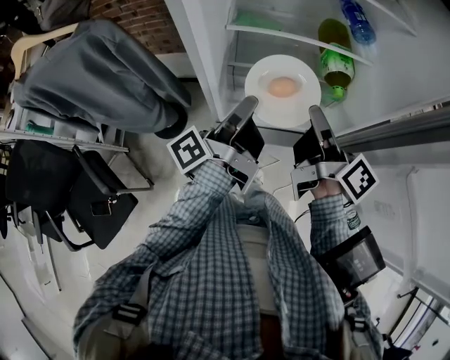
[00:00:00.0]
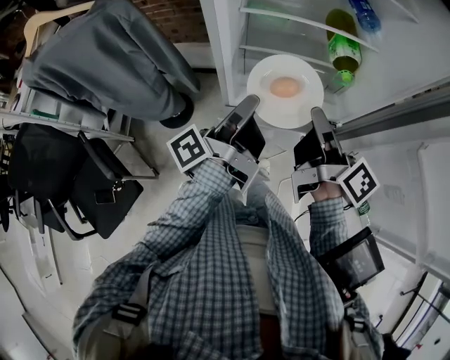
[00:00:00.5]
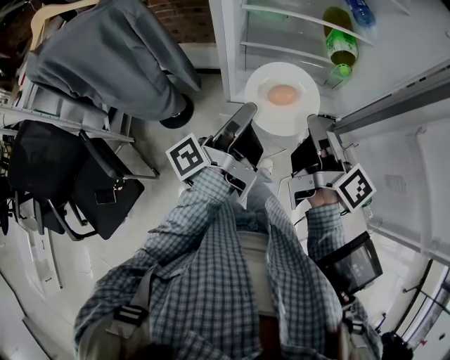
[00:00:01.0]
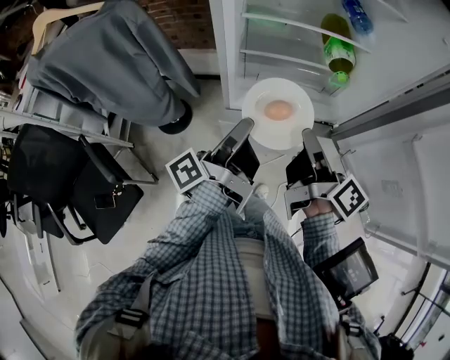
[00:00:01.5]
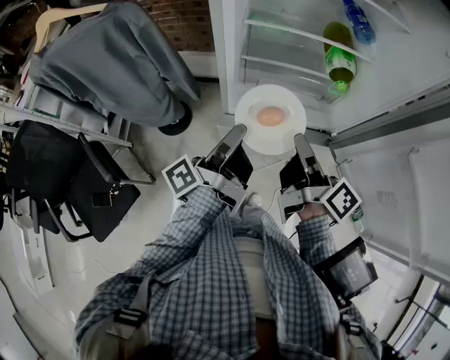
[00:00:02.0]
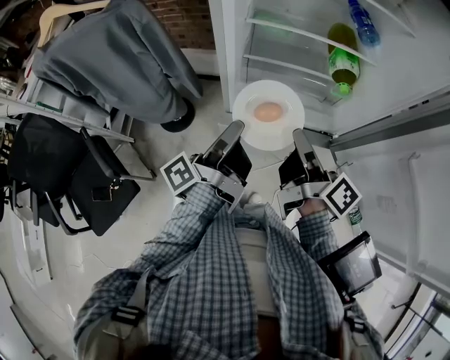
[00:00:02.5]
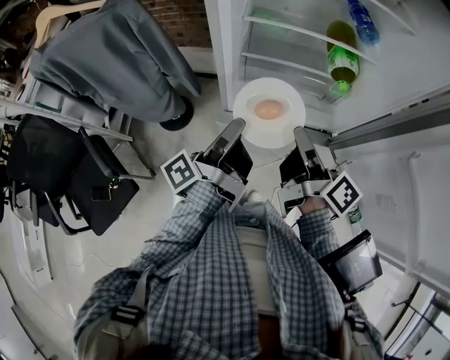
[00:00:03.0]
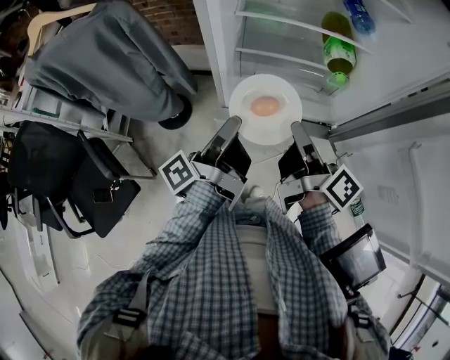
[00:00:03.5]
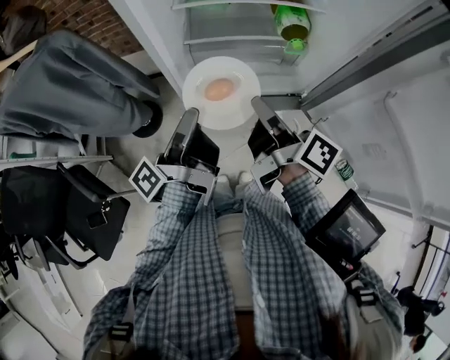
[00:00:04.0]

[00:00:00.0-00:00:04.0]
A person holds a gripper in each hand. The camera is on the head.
00:00:00.0 to 00:00:02.0: Both grippers move backward, approximately 10 cm.
00:00:02.0 to 00:00:04.0: The grippers stay close to where they were, moving slightly.

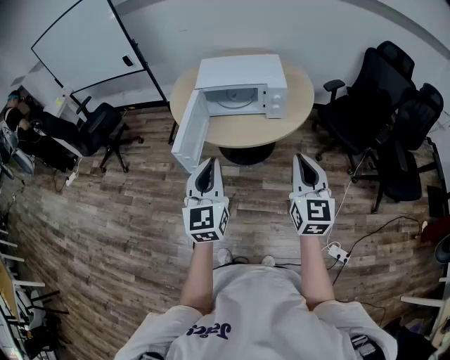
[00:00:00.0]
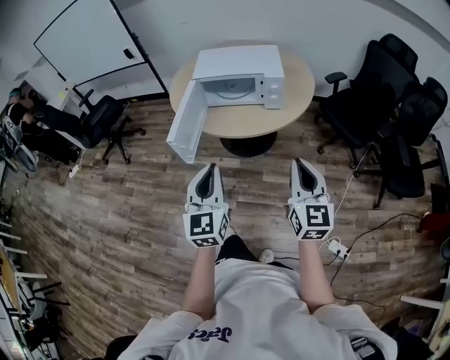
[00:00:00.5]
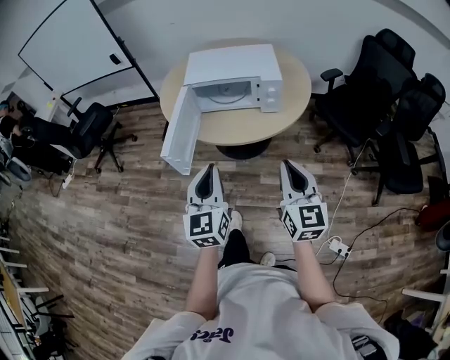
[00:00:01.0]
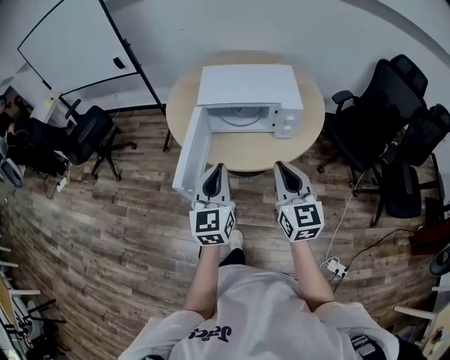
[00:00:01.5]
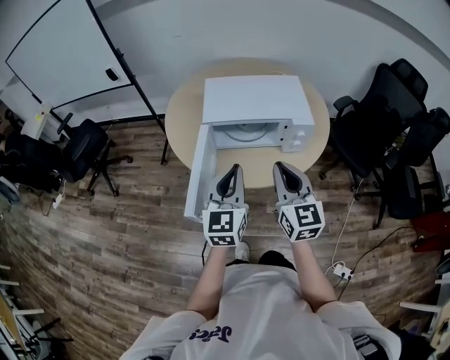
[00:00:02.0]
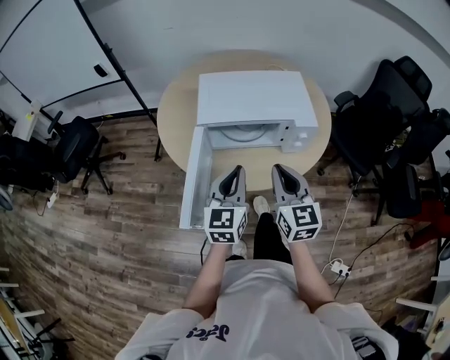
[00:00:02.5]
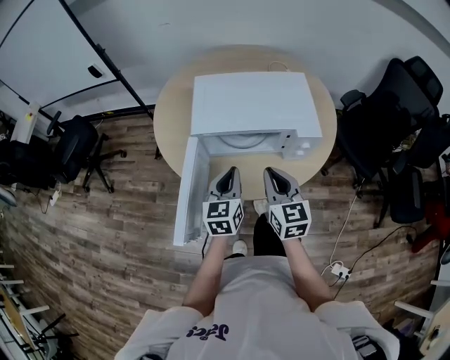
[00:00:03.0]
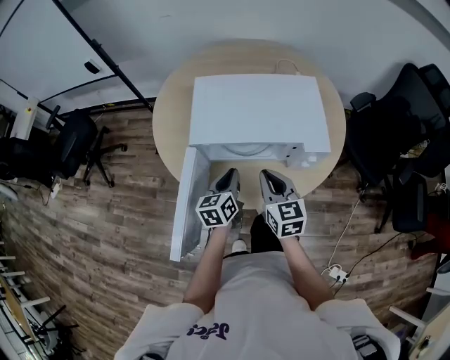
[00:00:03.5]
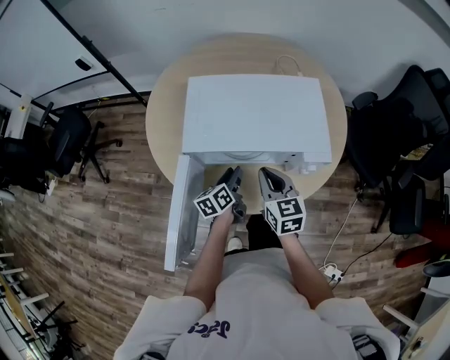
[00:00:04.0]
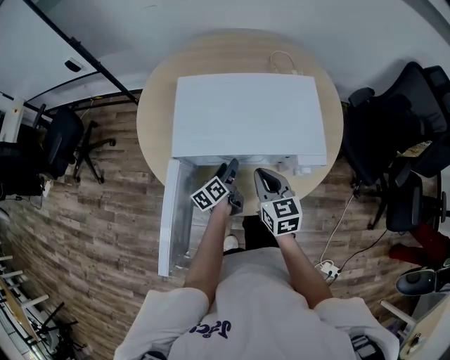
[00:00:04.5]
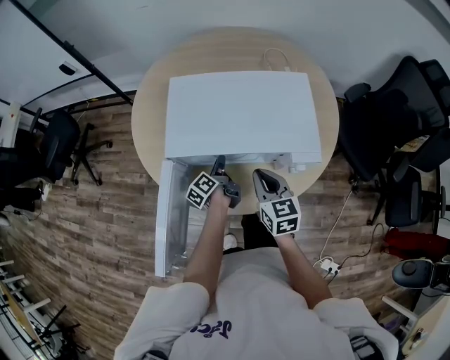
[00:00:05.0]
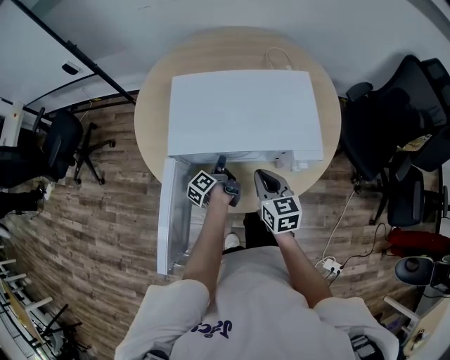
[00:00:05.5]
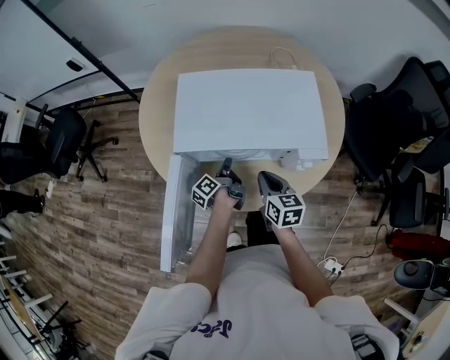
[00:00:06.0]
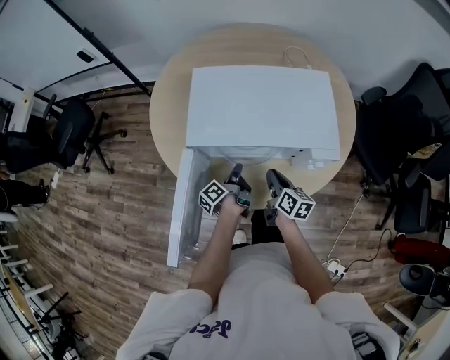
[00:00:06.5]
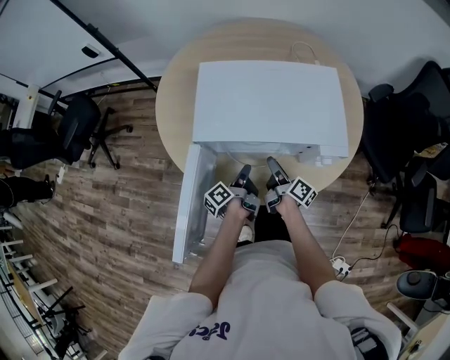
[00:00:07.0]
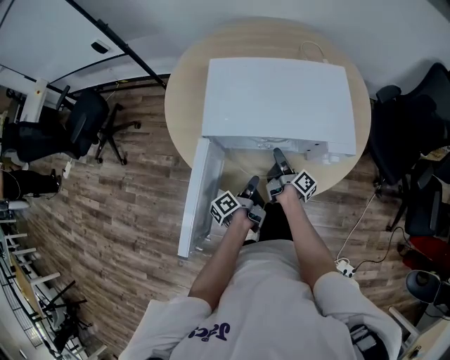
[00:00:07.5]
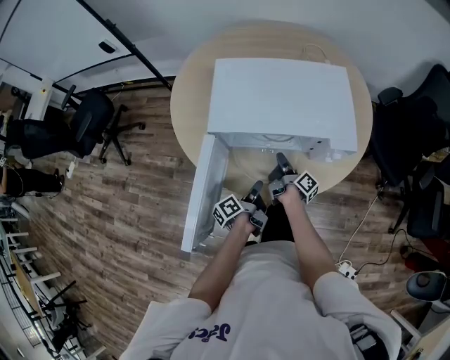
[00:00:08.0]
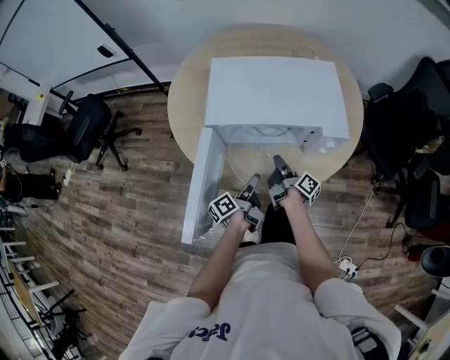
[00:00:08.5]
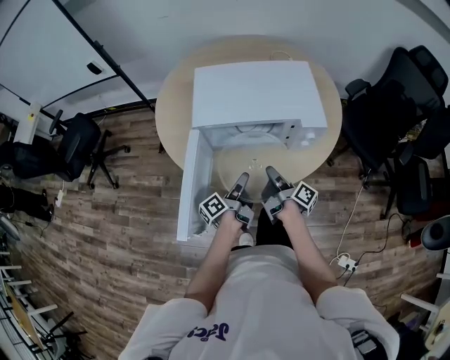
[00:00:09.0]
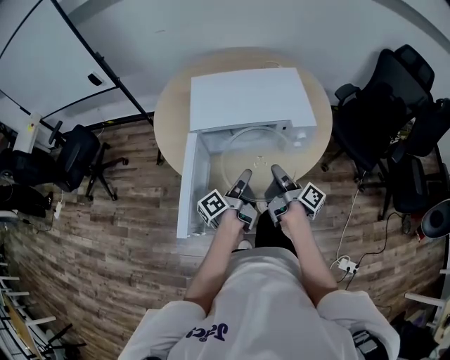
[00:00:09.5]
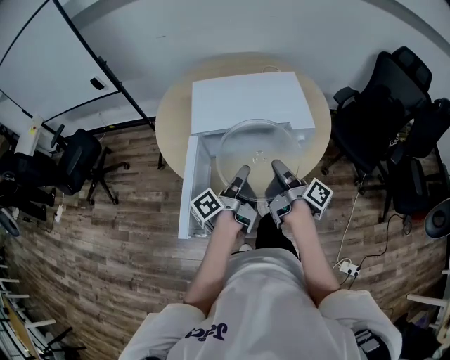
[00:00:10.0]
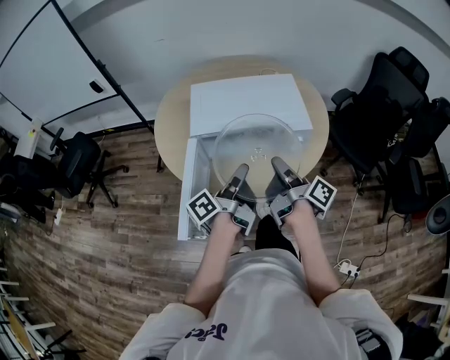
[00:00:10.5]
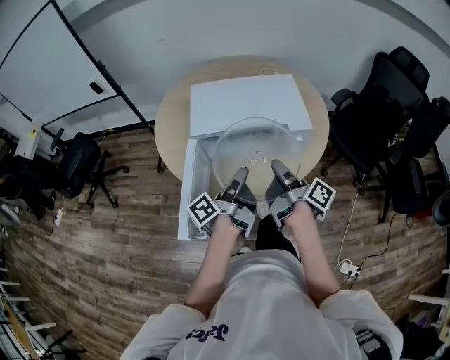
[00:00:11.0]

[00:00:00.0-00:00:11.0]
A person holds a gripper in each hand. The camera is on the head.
00:00:00.0 to 00:00:02.0: The right gripper moves forward and to the left, roughly 25 cm; the left gripper travels forward by about 25 cm.
00:00:02.0 to 00:00:03.5: The right gripper is displaced forward and downward by about 20 cm; the left gripper is displaced downward and forward by approximately 30 cm, and rotates roughly 40 degrees.
00:00:03.5 to 00:00:05.5: The right gripper moves downward, approximately 5 cm. Meanwhile the left gripper is displaced downward and forward by about 15 cm, twists about 50 degrees counterclockwise, seen from behind, and opens and closes again.
00:00:05.5 to 00:00:07.5: The right gripper is displaced downward by some 15 cm, rolls clockwise, seen from behind, by approximately 70 degrees, and opens its fingers. The left gripper shifts some 10 cm backward.
00:00:07.5 to 00:00:09.0: The left gripper shifts roughly 5 cm upward, and opens up, while the right gripper heads backward and upward, covering some 15 cm, and closes up.
00:00:09.0 to 00:00:11.0: The two grippers go some 20 cm upward. The left gripper closes up.

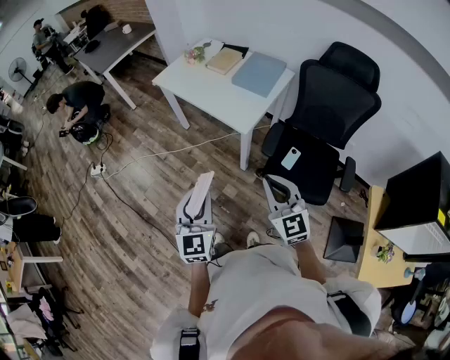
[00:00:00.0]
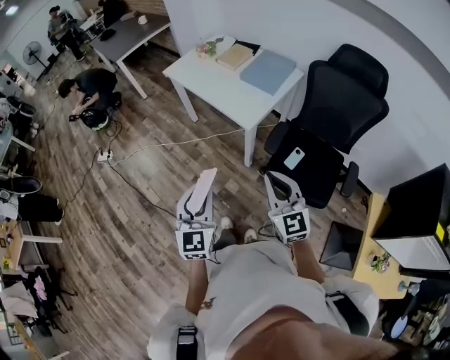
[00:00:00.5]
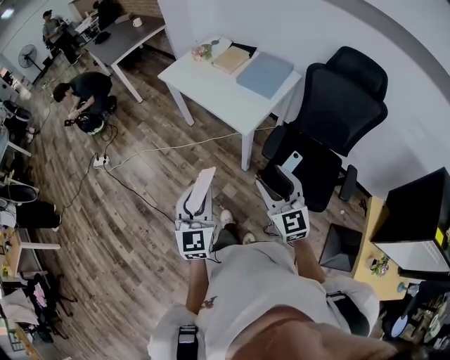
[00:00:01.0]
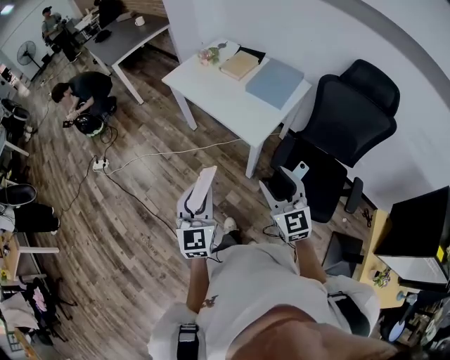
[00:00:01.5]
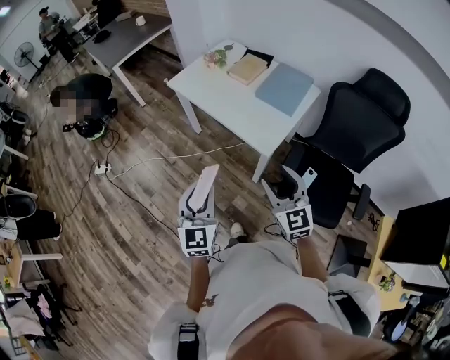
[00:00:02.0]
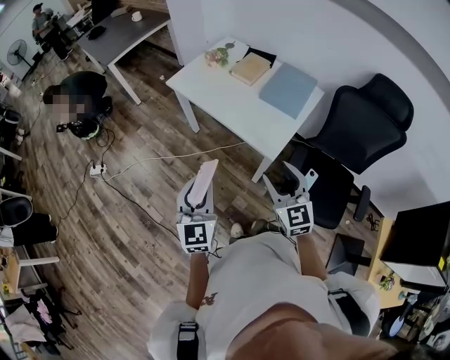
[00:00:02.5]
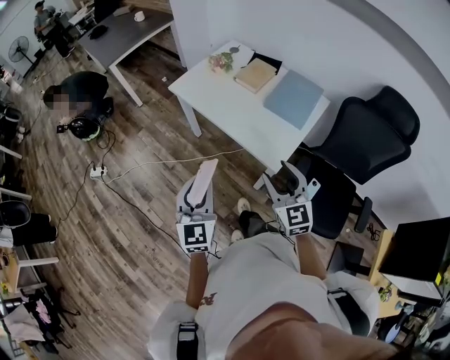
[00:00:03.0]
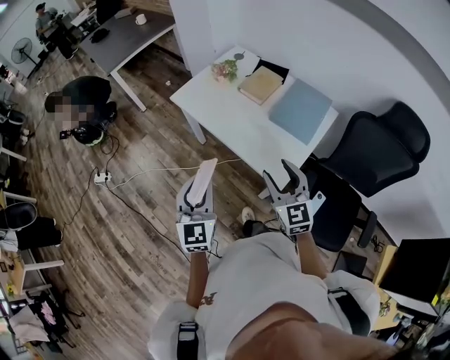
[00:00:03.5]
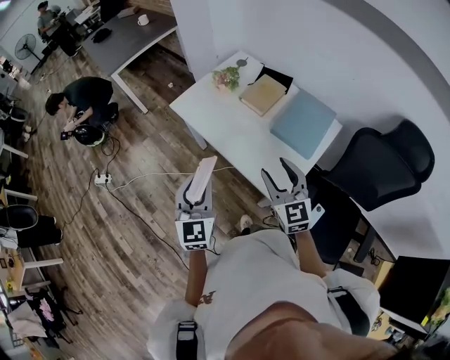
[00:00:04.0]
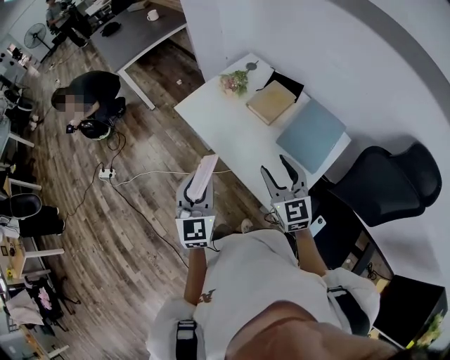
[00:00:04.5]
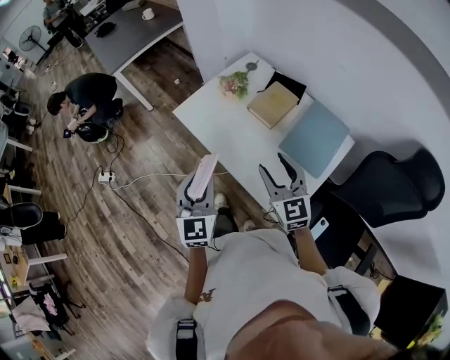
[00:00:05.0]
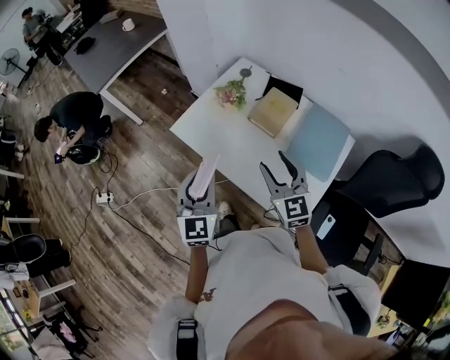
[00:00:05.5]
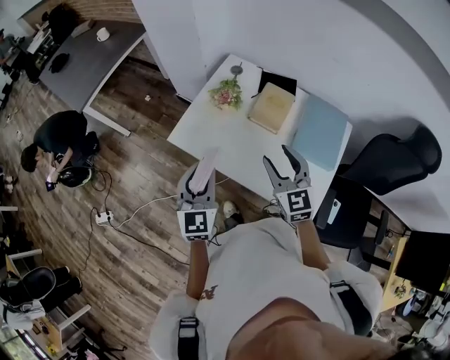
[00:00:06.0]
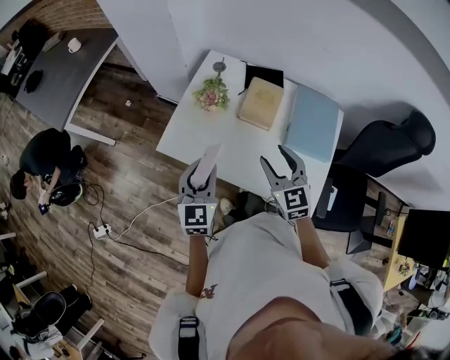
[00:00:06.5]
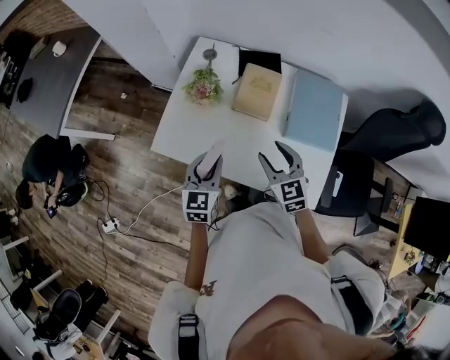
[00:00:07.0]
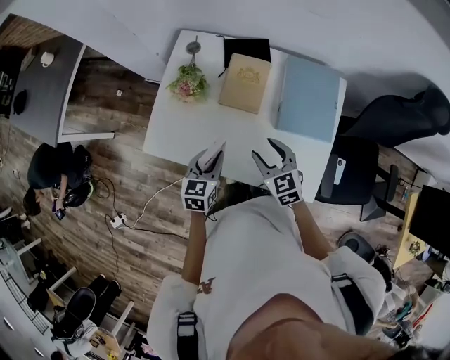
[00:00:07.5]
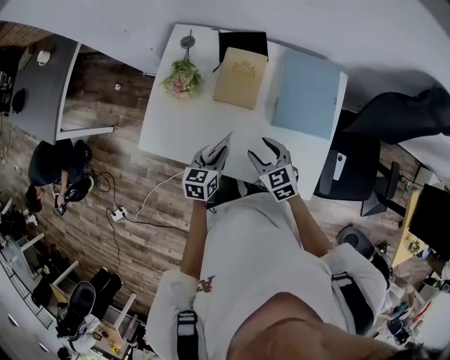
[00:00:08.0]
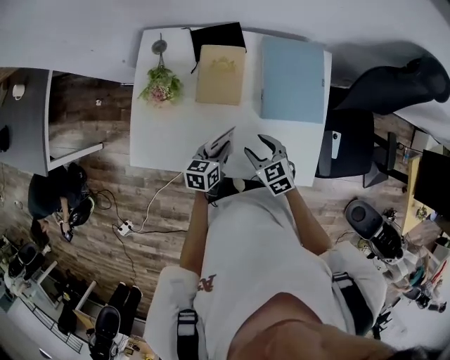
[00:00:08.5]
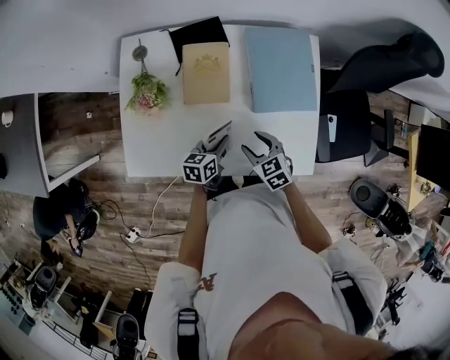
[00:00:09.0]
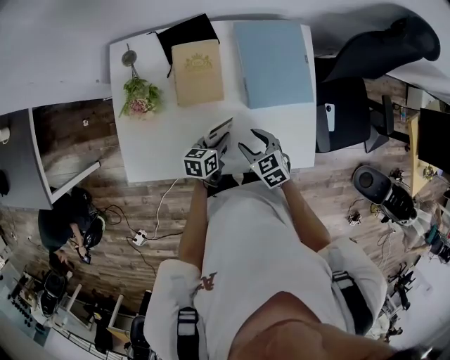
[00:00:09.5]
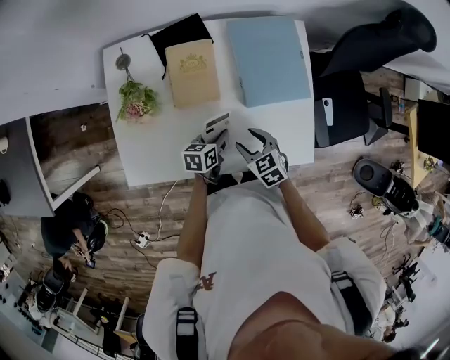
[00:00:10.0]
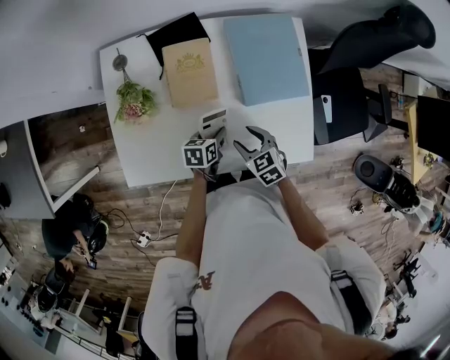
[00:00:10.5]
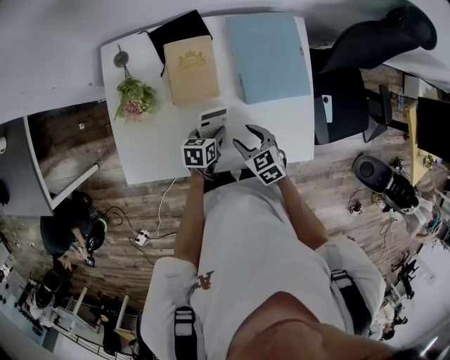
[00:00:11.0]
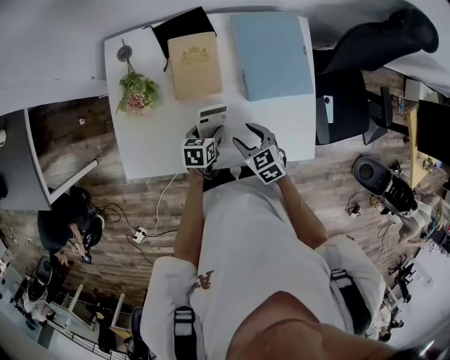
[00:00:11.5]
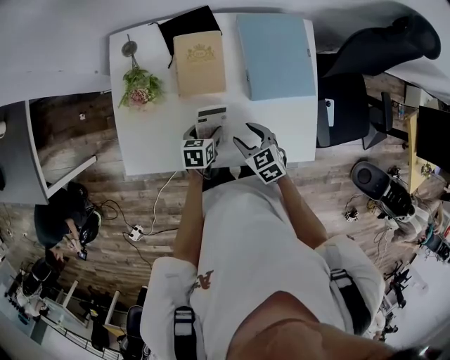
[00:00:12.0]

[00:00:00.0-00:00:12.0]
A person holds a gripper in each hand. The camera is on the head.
00:00:00.0 to 00:00:02.0: The two grippers go roughly 15 cm forward. The right gripper opens up.
00:00:02.0 to 00:00:04.0: Both grippers move forward, about 30 cm.
00:00:04.0 to 00:00:06.0: The two grippers go about 25 cm forward.
00:00:06.0 to 00:00:08.0: The right gripper shifts roughly 20 cm downward, and turns by some 30 degrees. Meanwhile the left gripper goes some 30 cm downward, to the right and forward, and turns by some 50 degrees.
00:00:08.0 to 00:00:10.0: The right gripper heads downward, covering some 5 cm, and swivels some 20 degrees, while the left gripper is displaced downward and to the right by roughly 10 cm, and rotates about 30 degrees.
00:00:10.0 to 00:00:12.0: The left gripper heads to the left, covering approximately 5 cm, and opens.
